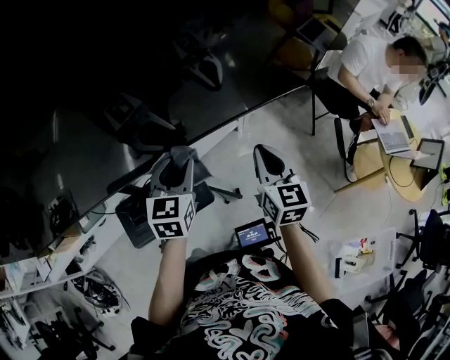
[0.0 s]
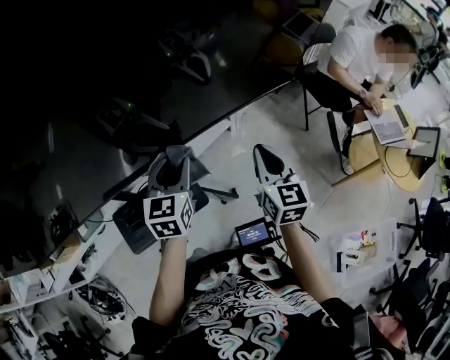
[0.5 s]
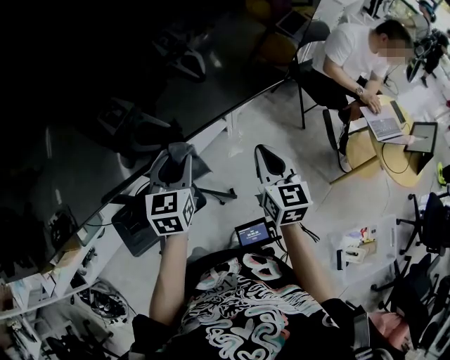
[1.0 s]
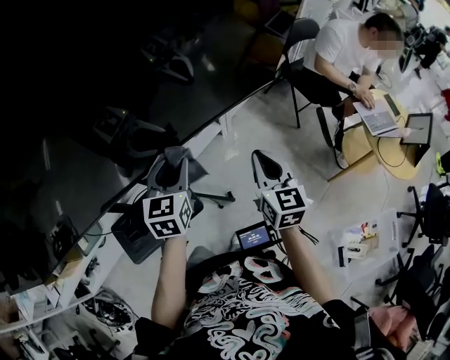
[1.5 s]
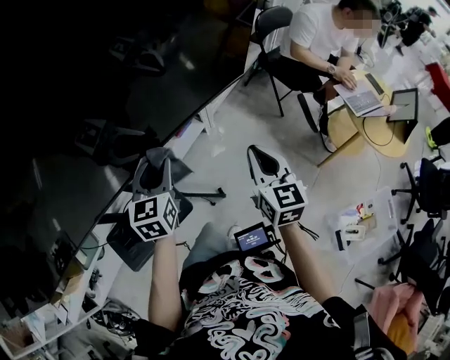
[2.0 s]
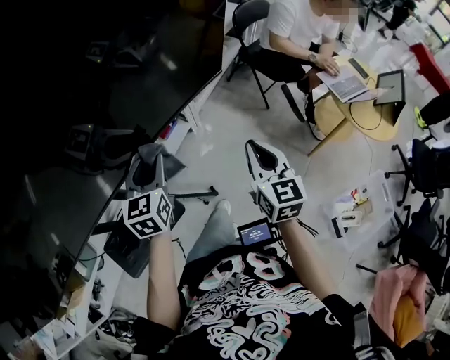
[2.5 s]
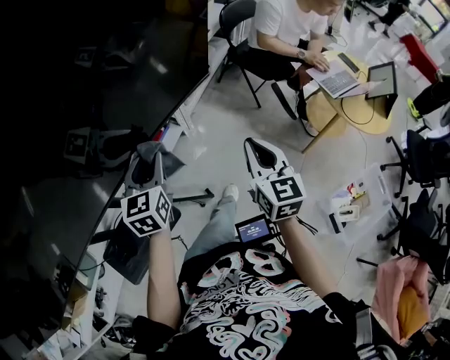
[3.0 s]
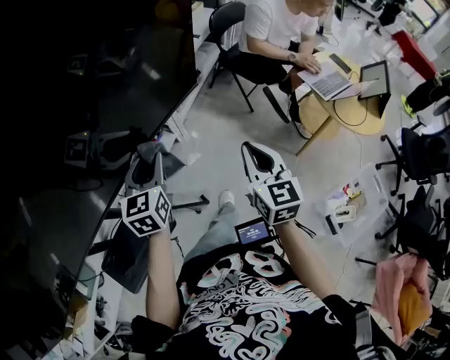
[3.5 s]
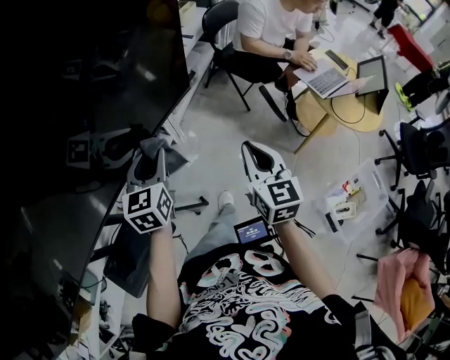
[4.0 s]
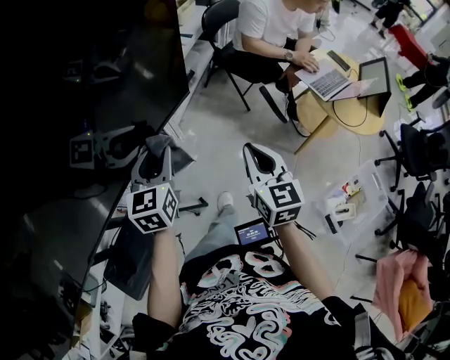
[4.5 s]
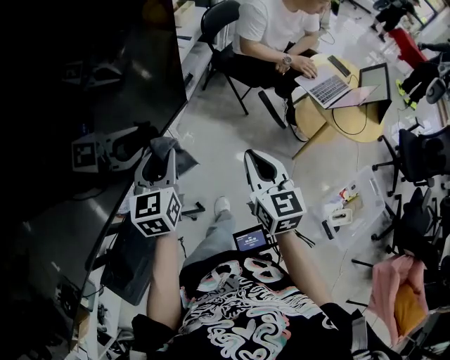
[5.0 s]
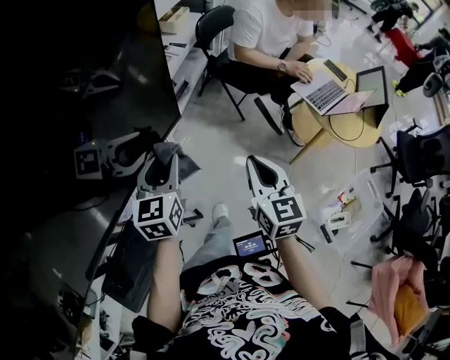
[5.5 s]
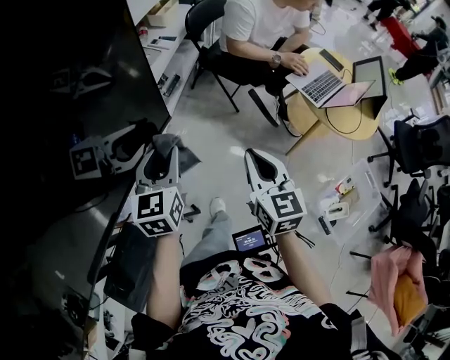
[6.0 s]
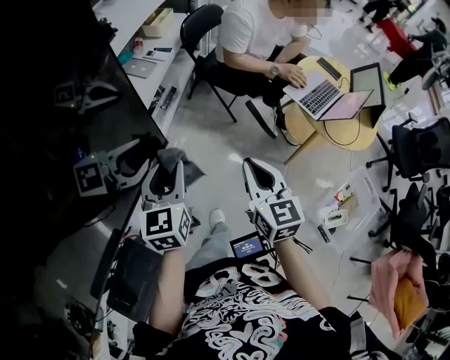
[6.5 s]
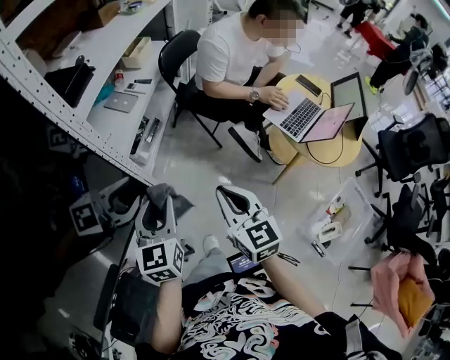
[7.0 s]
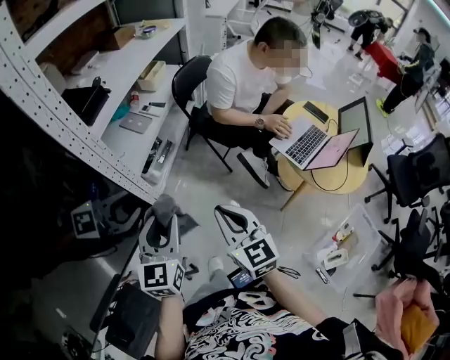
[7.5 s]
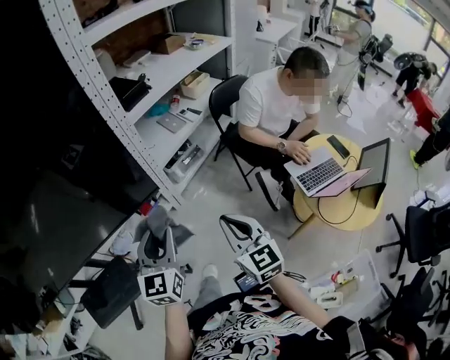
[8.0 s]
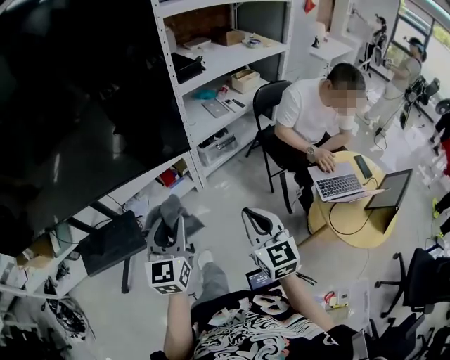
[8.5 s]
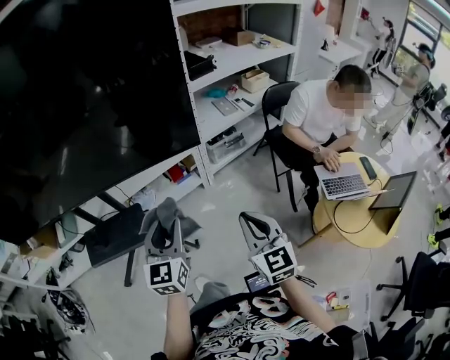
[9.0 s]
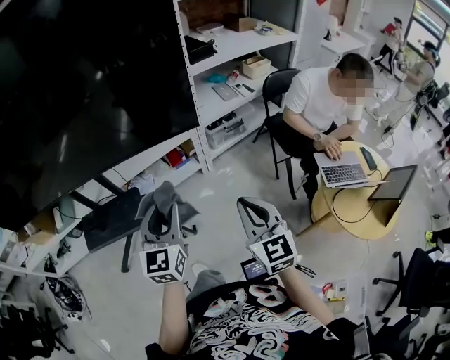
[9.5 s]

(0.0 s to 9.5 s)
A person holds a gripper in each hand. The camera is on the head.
0.0 s - 2.0 s: The right gripper is displaced to the right by about 10 cm; the left gripper goes some 5 cm to the right.
2.0 s - 4.0 s: The right gripper shifts some 10 cm to the right. The left gripper goes some 15 cm to the right and forward.
4.0 s - 5.5 s: The right gripper moves forward, about 5 cm; the left gripper goes some 10 cm forward and to the right.
5.5 s - 7.5 s: The left gripper moves to the right and forward, roughly 10 cm; the right gripper shifts approximately 10 cm forward.
7.5 s - 9.5 s: The left gripper ends up roughly 30 cm from where it was, and turns by approximately 40 degrees, while the right gripper shifts by about 25 cm, and rotates approximately 30 degrees.

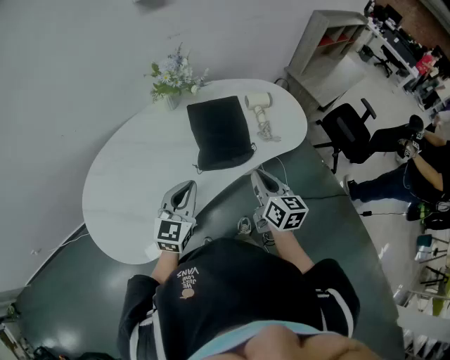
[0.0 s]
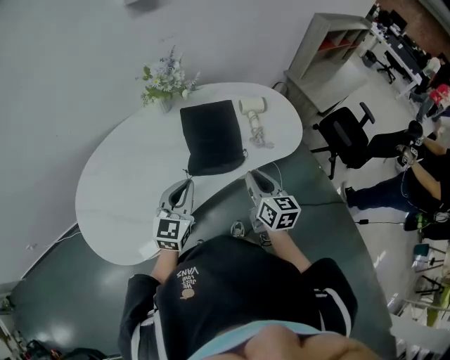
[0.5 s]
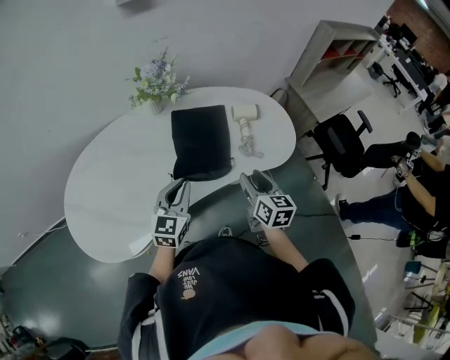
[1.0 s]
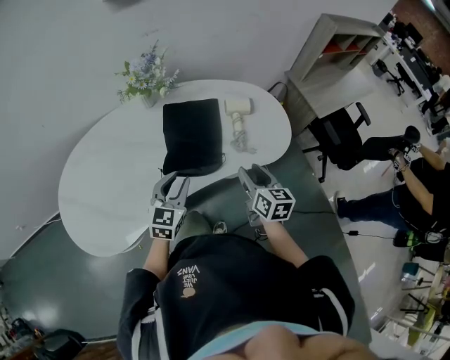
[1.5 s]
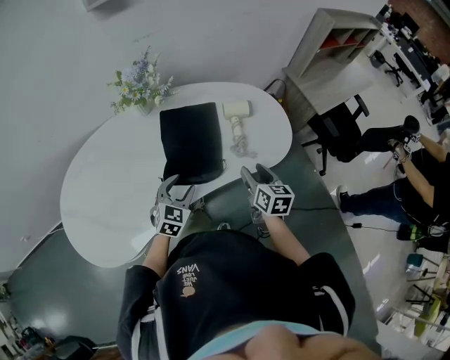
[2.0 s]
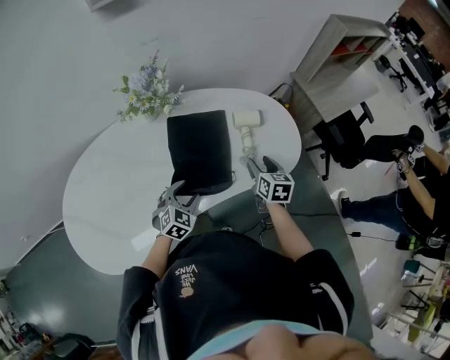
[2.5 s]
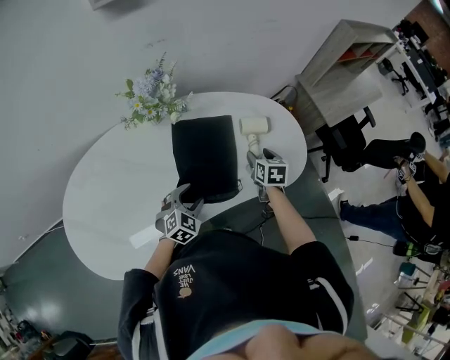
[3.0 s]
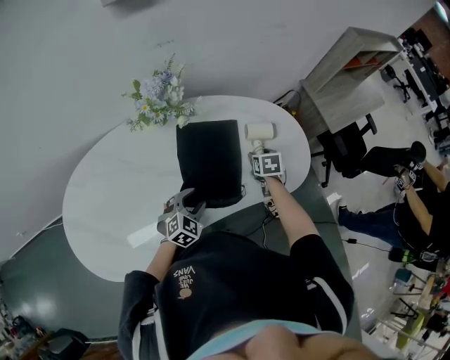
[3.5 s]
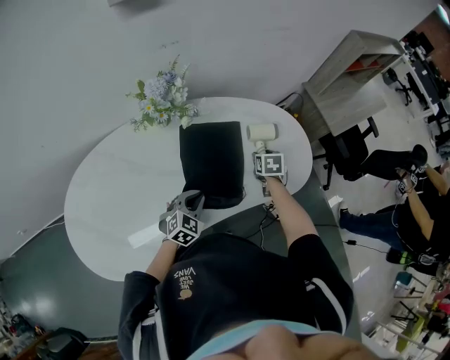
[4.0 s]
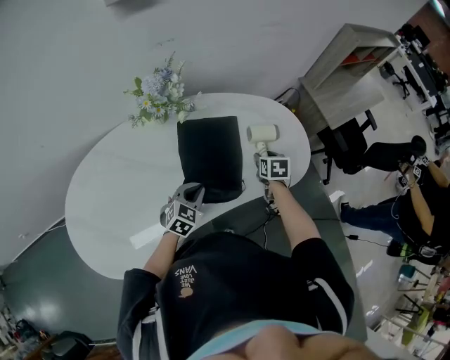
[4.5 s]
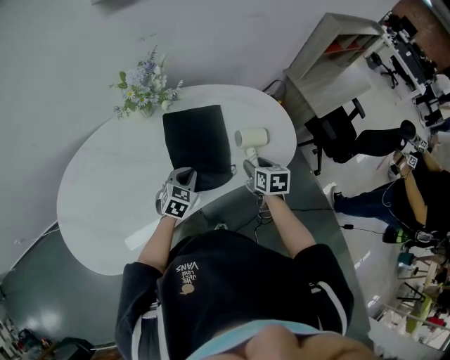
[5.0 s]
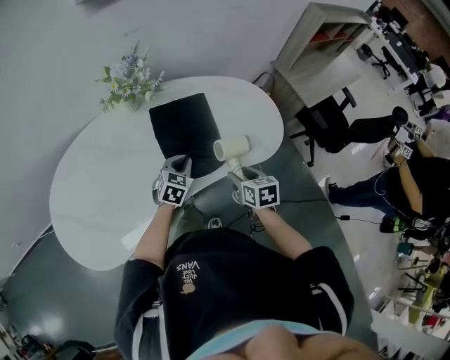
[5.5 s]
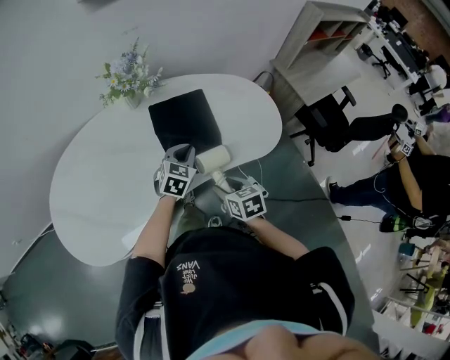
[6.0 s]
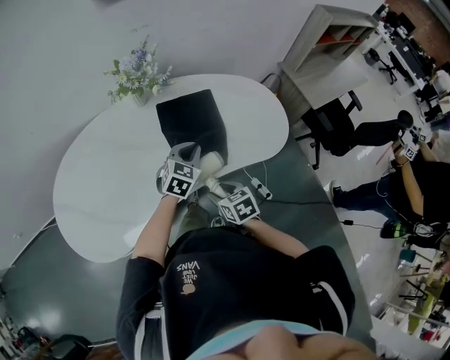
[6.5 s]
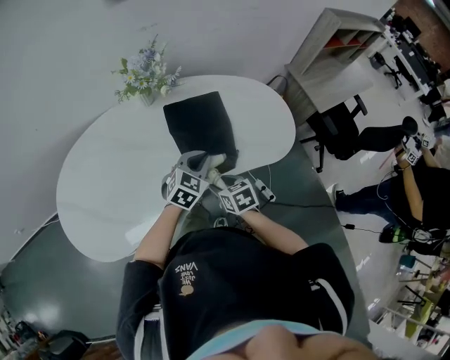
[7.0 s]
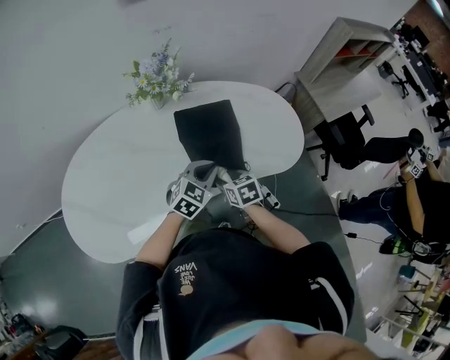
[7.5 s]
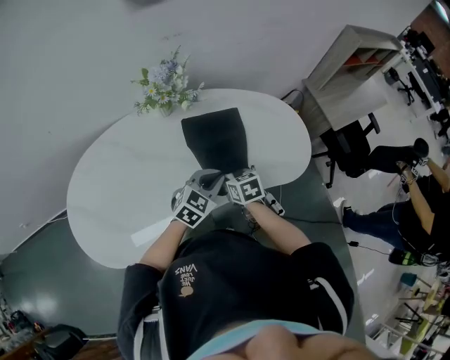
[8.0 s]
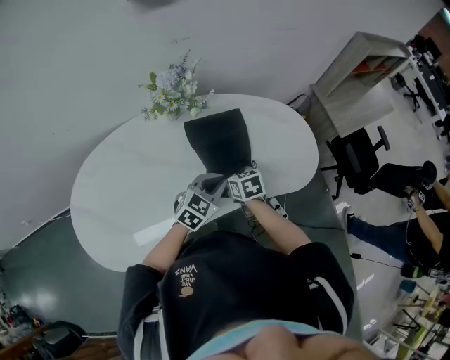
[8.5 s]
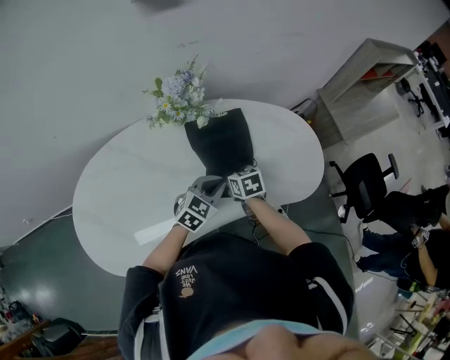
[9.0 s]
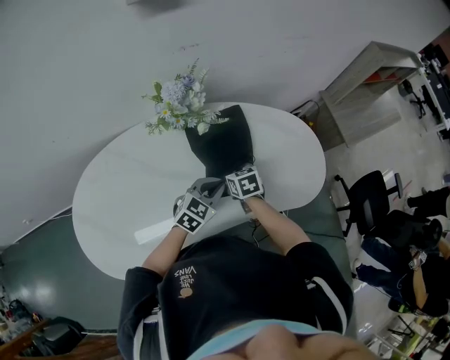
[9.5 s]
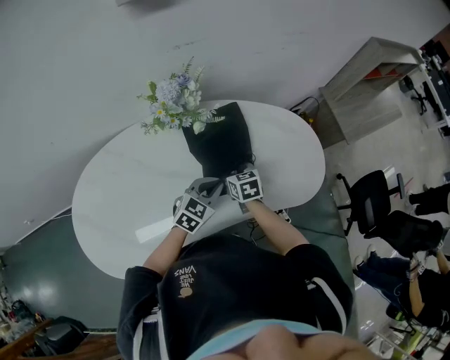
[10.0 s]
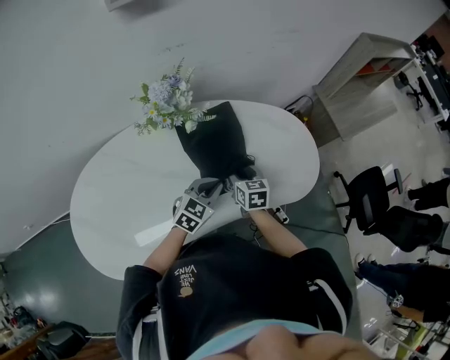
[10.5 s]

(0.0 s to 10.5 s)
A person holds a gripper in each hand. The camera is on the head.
0.0 s - 2.0 s: The left gripper goes approximately 20 cm downward, to the right and forward, swivels about 30 degrees, and opens up. Meanwhile the right gripper heads to the right, forward and downward, covering some 20 cm, and opens up.
2.0 s - 4.0 s: The left gripper heads forward, covering some 5 cm, and closes. The right gripper moves forward and downward, about 20 cm, and rotates roughly 30 degrees.
4.0 s - 6.5 s: The left gripper shifts roughly 10 cm to the right and upward; the right gripper moves backward, about 30 cm, and turns by approximately 30 degrees.
6.5 s - 8.5 s: The right gripper is displaced forward by about 20 cm.
8.5 s - 10.5 s: The left gripper changes place by some 5 cm. The right gripper heads forward, covering approximately 5 cm.

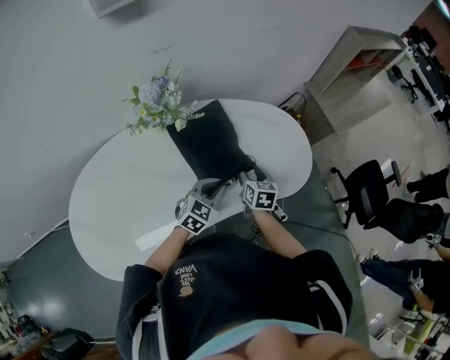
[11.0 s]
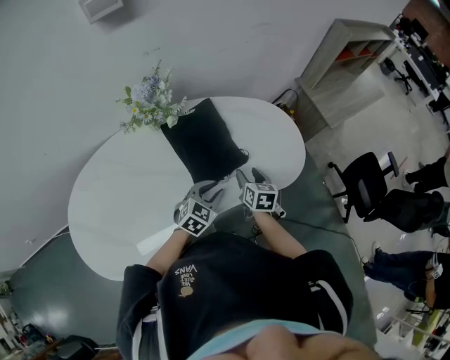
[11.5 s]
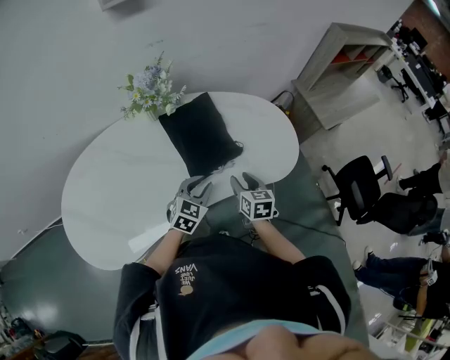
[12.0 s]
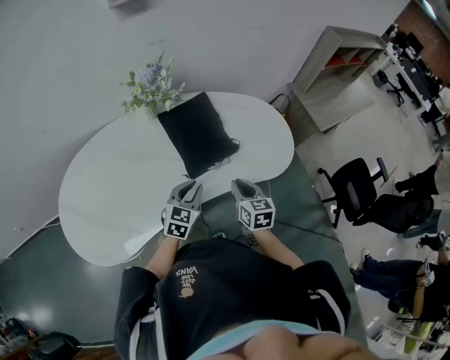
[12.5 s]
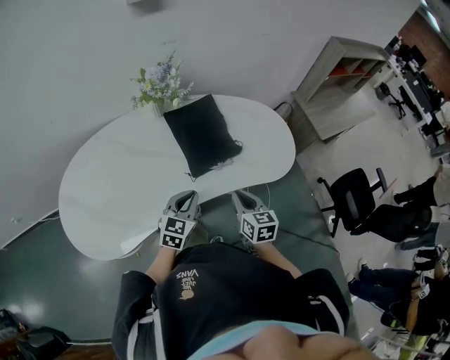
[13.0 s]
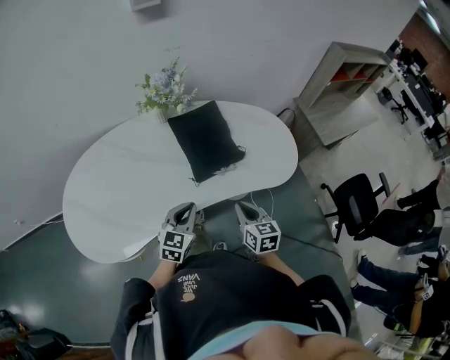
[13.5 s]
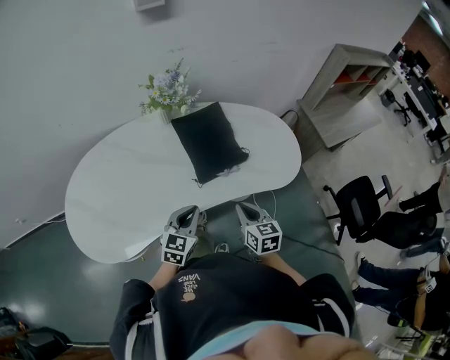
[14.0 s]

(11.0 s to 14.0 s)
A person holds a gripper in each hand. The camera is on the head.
11.0 s - 12.5 s: The left gripper shifts some 10 cm backward, while the right gripper shifts approximately 15 cm backward, and closes its fingers.
12.5 s - 14.0 s: The two grippers go about 5 cm backward.

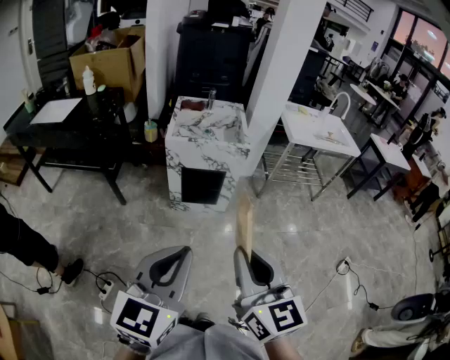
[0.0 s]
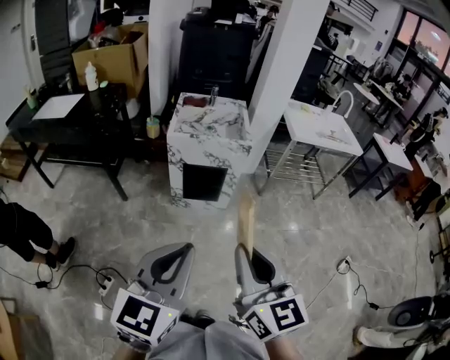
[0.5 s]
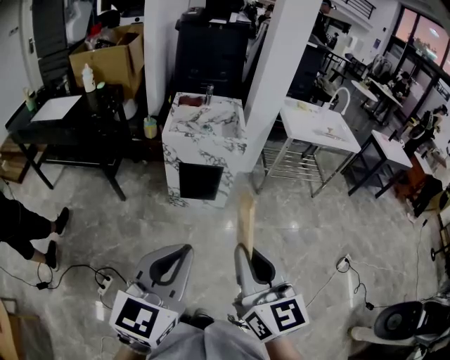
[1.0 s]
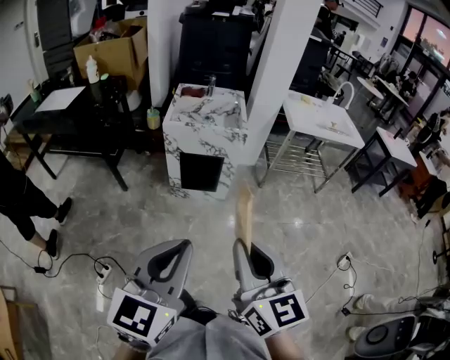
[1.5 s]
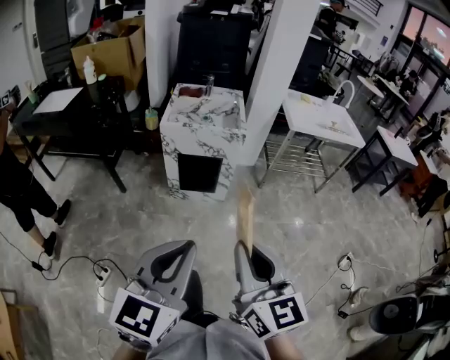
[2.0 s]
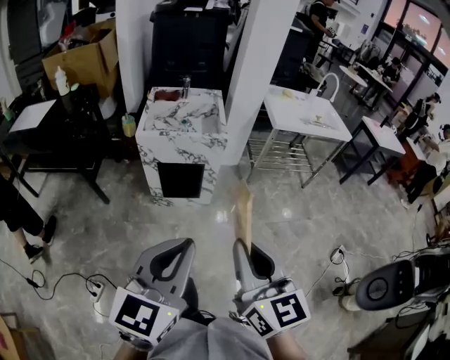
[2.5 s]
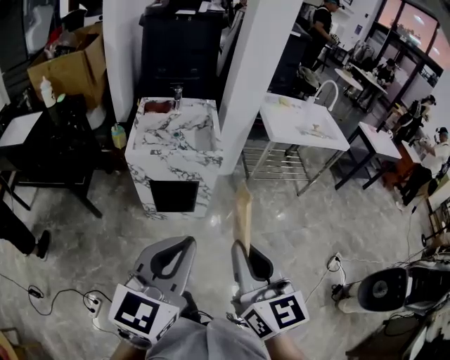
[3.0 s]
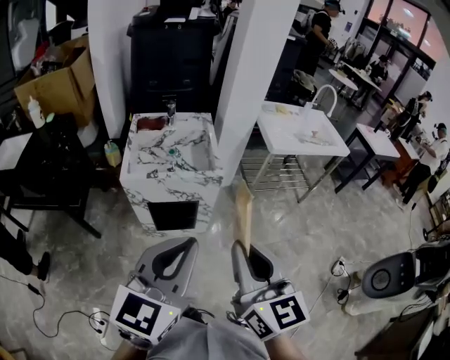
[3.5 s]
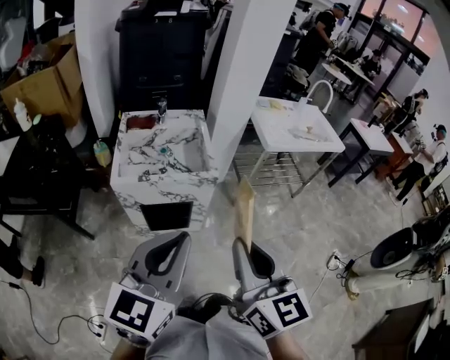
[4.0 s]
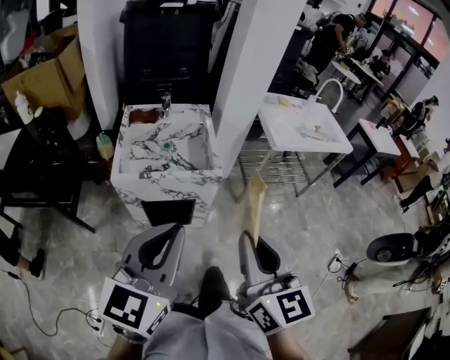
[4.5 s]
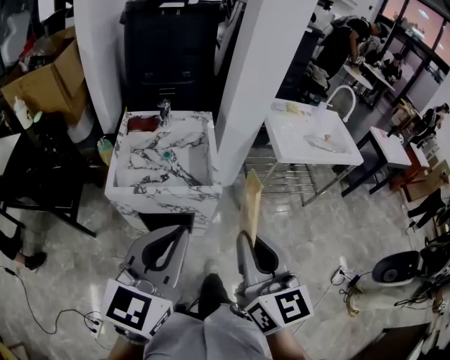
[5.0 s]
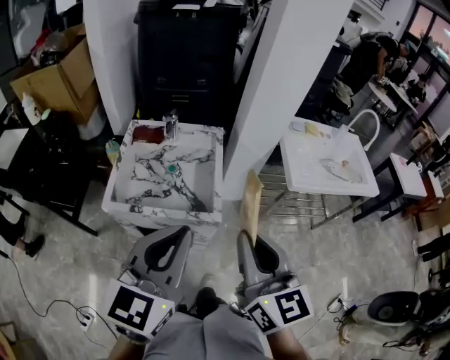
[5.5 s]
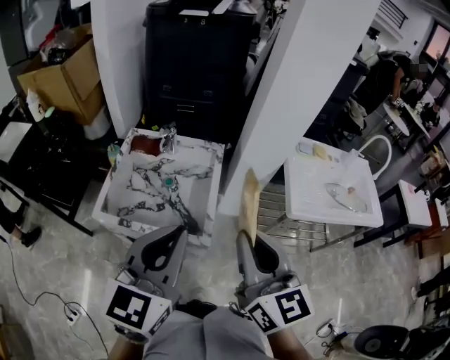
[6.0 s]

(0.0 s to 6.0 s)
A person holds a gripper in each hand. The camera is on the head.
0.0 s - 2.0 s: The grippers both shift to the right by about 10 cm.
2.0 s - 4.0 s: The grippers both shift forward by approximately 35 cm.
4.0 s - 6.0 s: The grippers both shift forward by about 35 cm.
